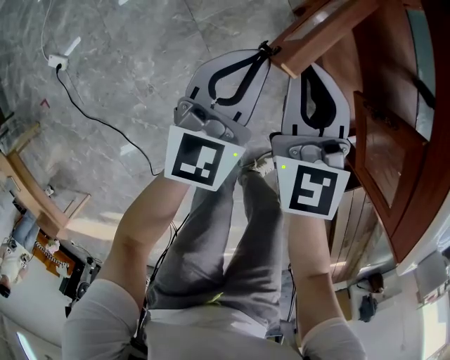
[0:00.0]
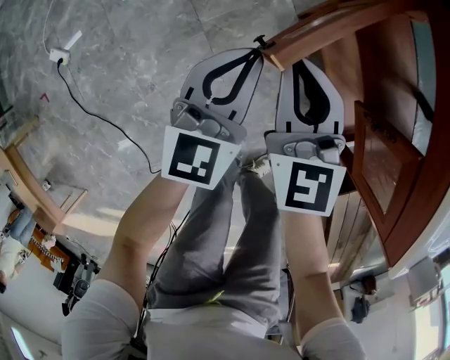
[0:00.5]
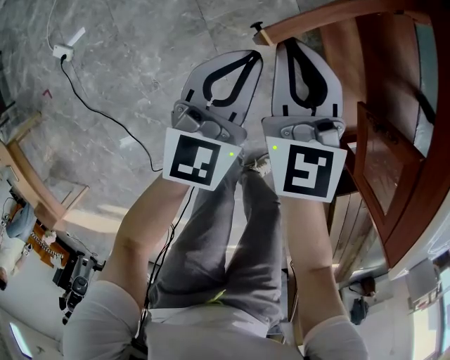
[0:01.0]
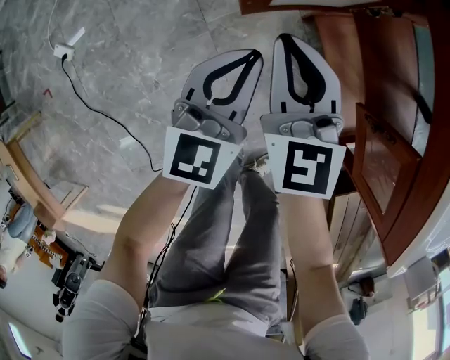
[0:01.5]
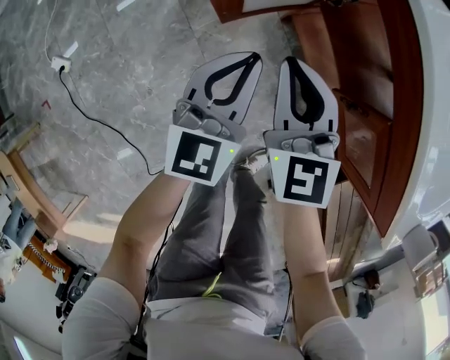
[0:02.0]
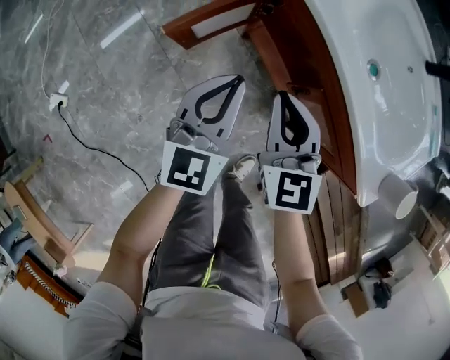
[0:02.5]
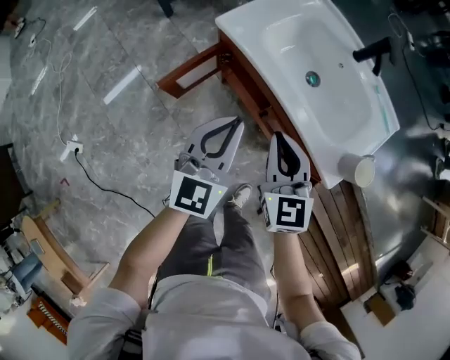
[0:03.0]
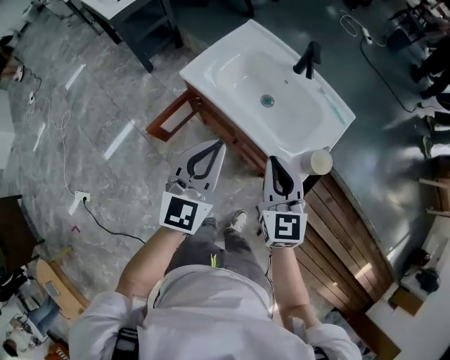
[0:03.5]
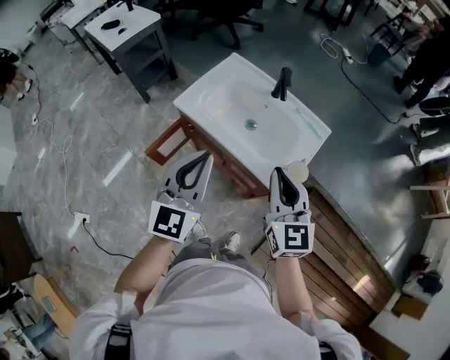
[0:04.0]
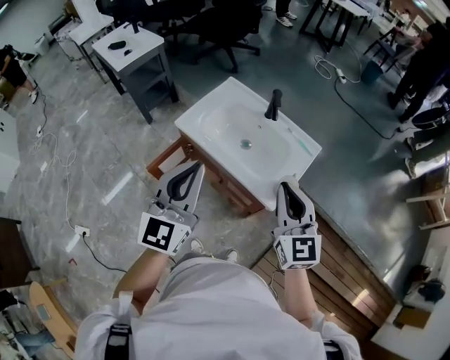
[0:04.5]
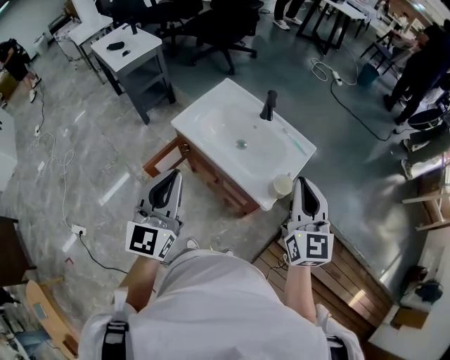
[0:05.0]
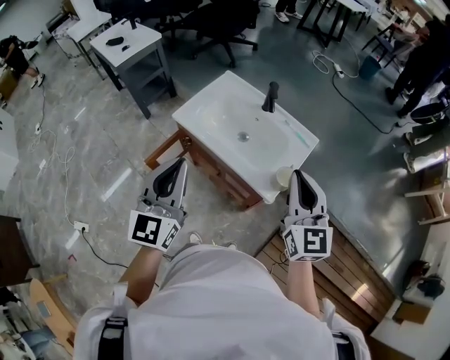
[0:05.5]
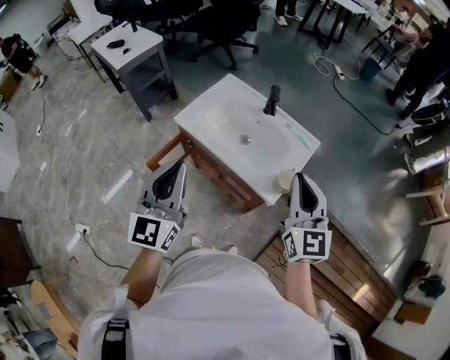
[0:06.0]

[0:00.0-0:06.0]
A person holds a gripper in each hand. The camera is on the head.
0:00.0 to 0:02.0: Both grippers move upward, approximately 5 cm.
0:02.0 to 0:04.0: Both grippers travel together upward and to the right, about 60 cm. The right gripper changes its angle by some 30 degrees, while the left gripper changes its angle by about 30 degrees.
0:04.0 to 0:06.0: The right gripper is displaced upward and to the right by roughly 10 cm, while the left gripper goes roughly 10 cm upward and backward.

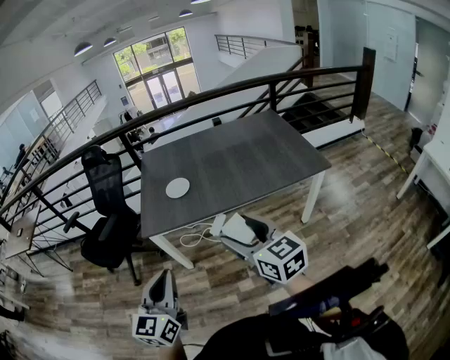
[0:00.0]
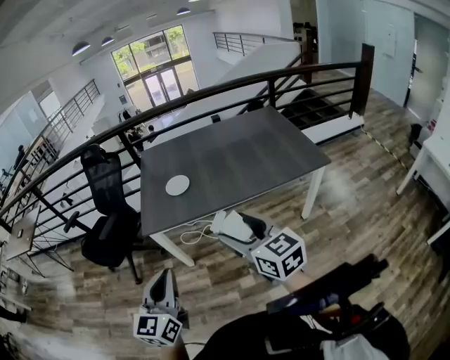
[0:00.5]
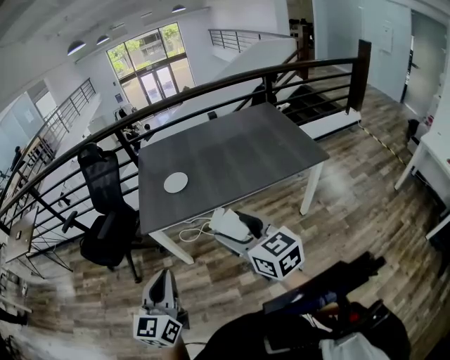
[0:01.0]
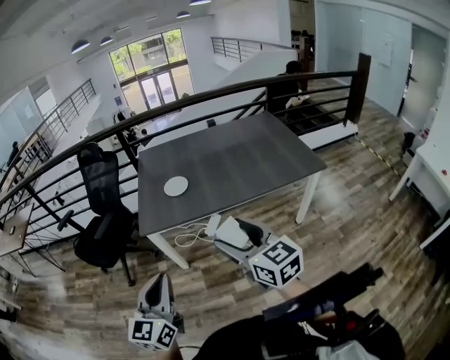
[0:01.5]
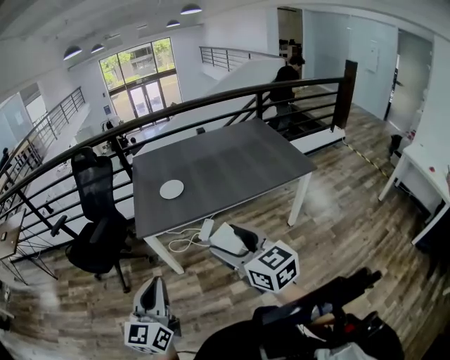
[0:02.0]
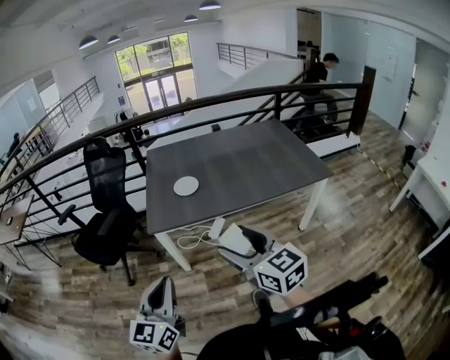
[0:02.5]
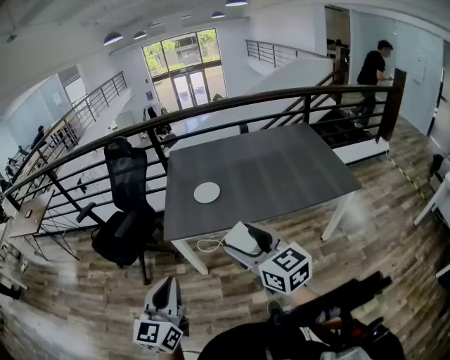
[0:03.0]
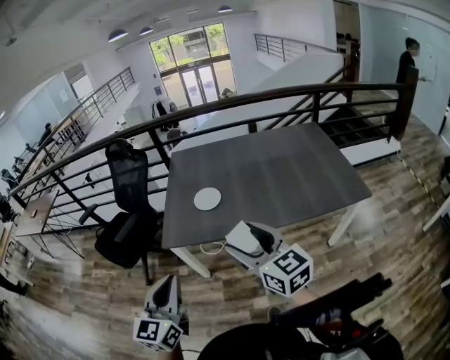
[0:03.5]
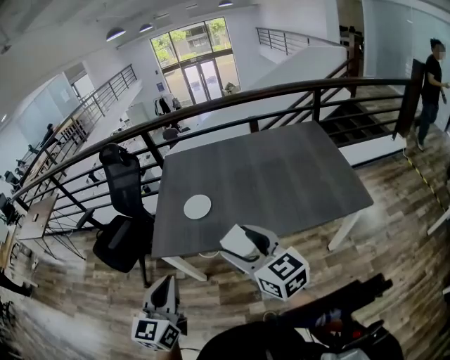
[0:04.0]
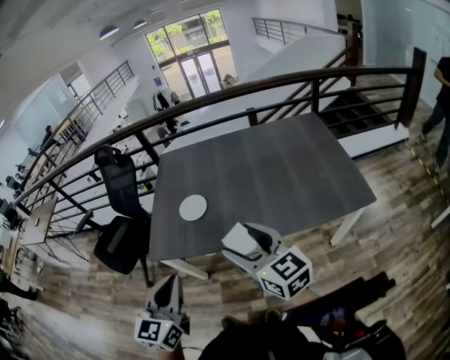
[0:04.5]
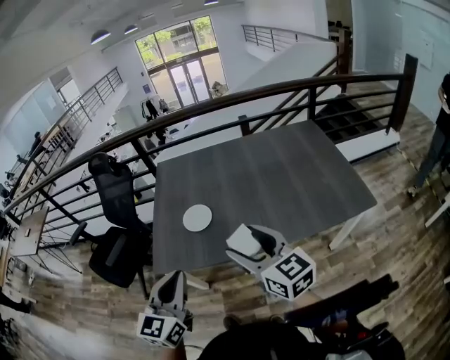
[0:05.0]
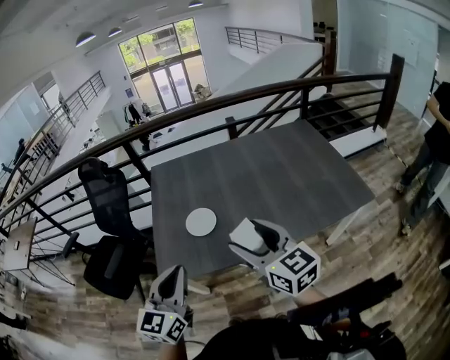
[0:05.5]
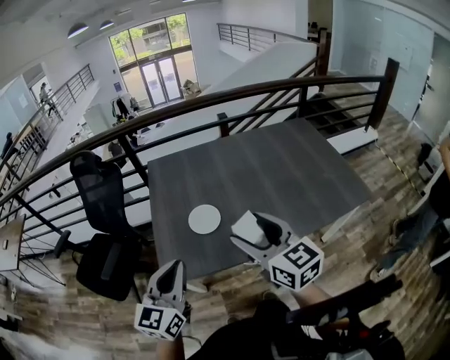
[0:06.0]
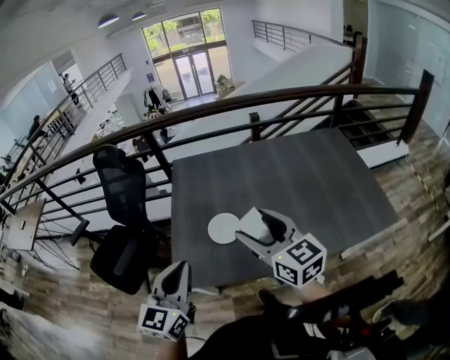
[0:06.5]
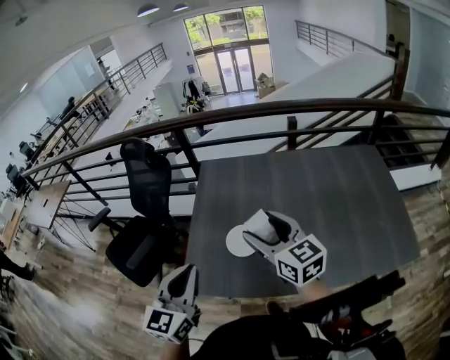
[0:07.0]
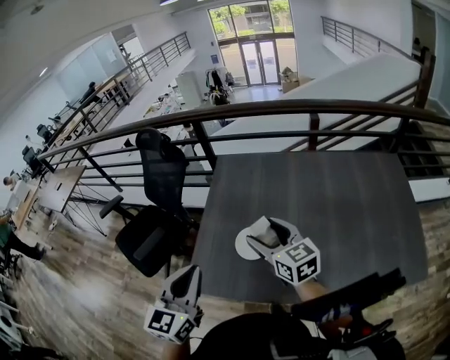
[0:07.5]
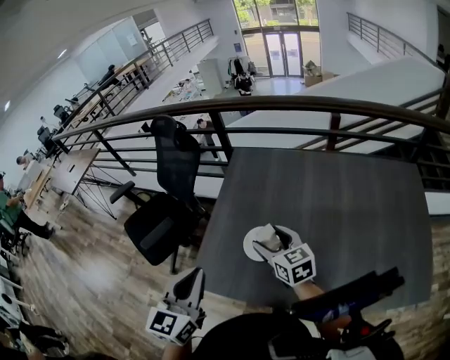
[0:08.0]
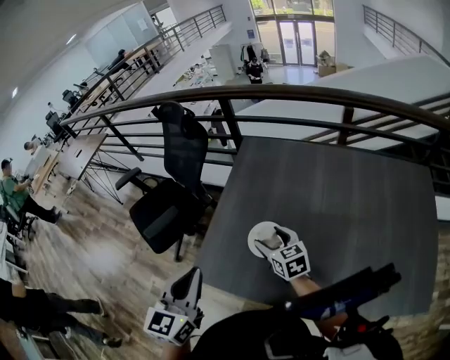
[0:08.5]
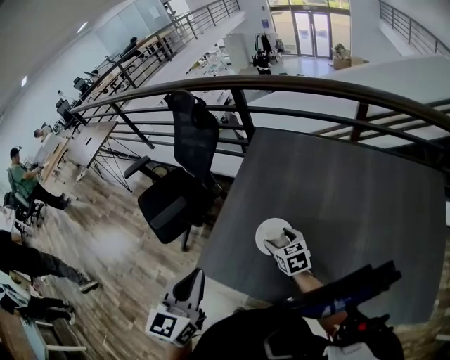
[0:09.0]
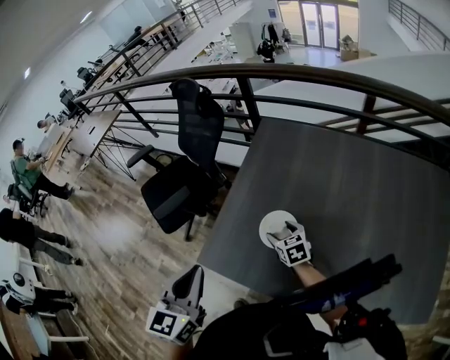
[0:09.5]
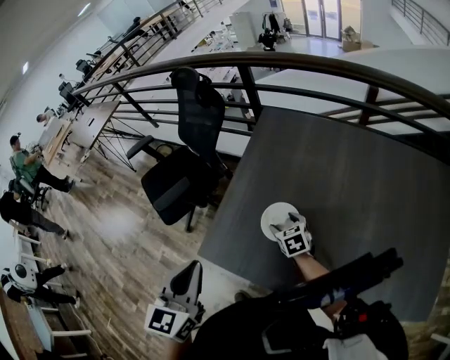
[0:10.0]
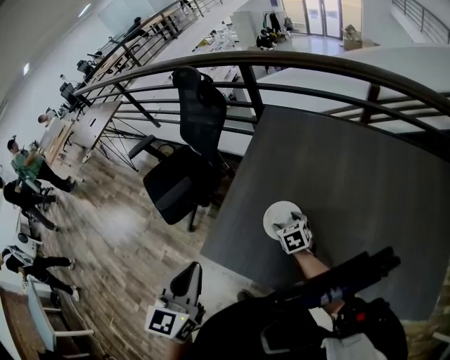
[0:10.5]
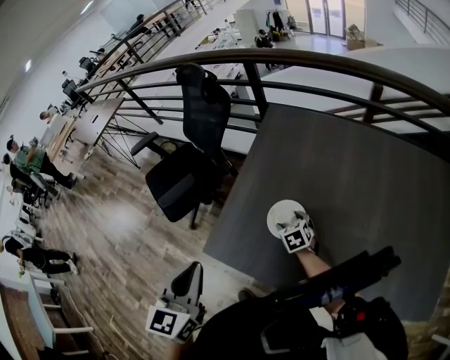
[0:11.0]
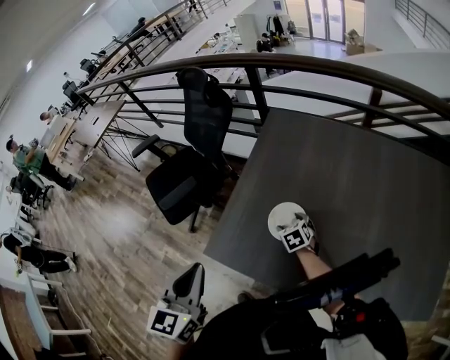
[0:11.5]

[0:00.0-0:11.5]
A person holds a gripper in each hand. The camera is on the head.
0:00.0 to 0:02.0: The right gripper is displaced to the left and backward by about 10 cm. Meanwhile the left gripper is displaced to the left by some 10 cm.
0:02.0 to 0:04.0: The grippers both shift forward and to the right by about 30 cm.
0:04.0 to 0:06.0: Both grippers move forward and to the left, some 25 cm.
0:06.0 to 0:07.5: The left gripper heads forward, covering approximately 10 cm, and swivels roughly 20 degrees; the right gripper shifts some 20 cm forward, and rotates roughly 20 degrees.
0:07.5 to 0:09.5: The right gripper travels downward by approximately 25 cm, and changes its angle by some 30 degrees.
0:09.5 to 0:11.5: The right gripper is displaced downward by roughly 10 cm.

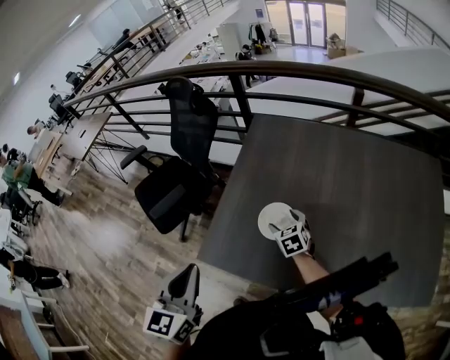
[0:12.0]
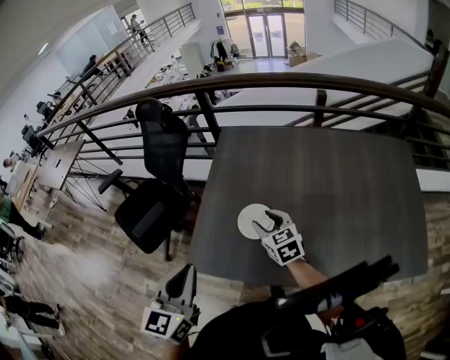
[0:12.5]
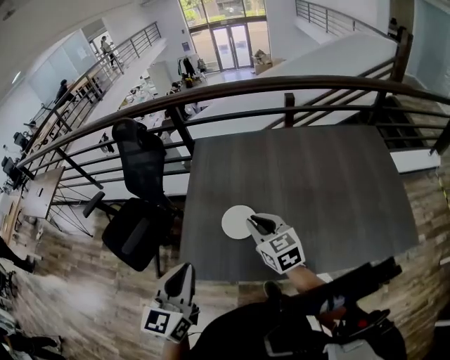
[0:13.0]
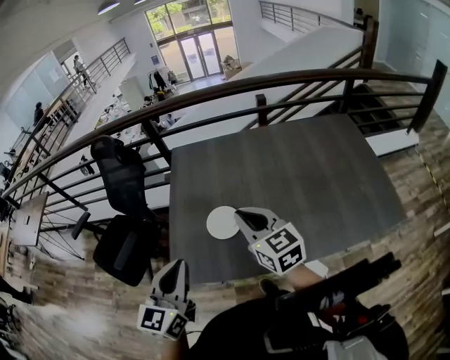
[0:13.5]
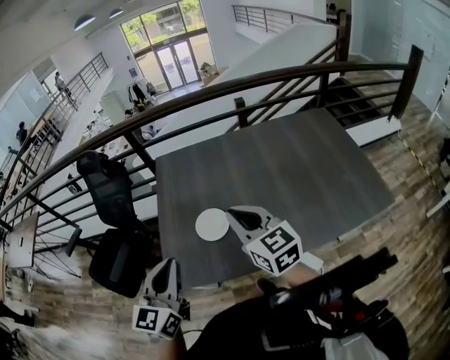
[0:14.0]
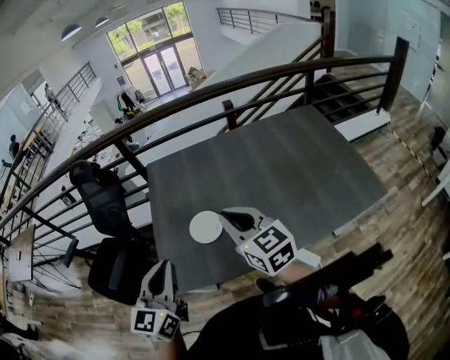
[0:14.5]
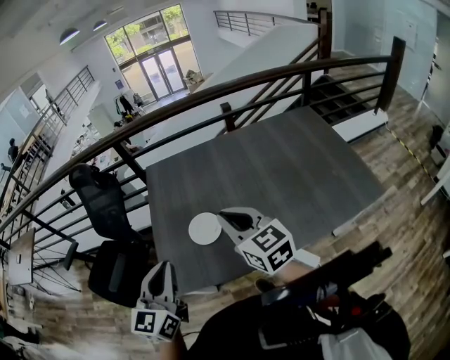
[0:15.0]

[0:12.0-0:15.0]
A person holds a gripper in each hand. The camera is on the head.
0:12.0 to 0:13.5: The left gripper rotates approximately 30 degrees; the right gripper travels upward and backward by some 30 cm, tilts its fingers roughly 30 degrees upward, and closes up.
0:13.5 to 0:15.0: The grippers stay close to where they were, moving slightly.

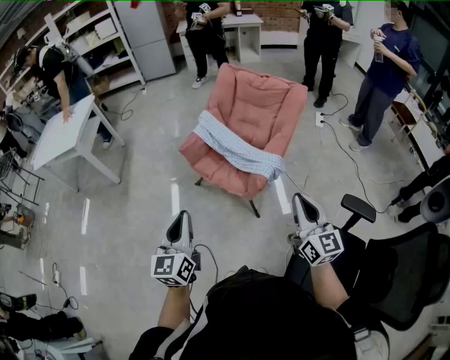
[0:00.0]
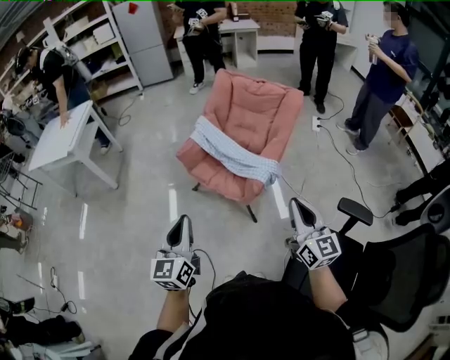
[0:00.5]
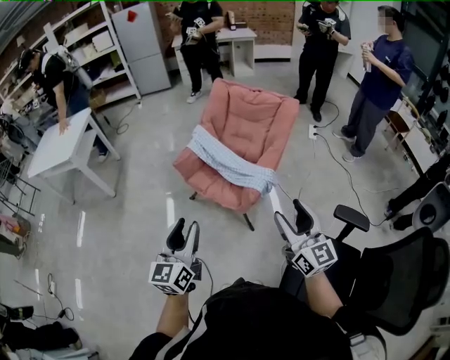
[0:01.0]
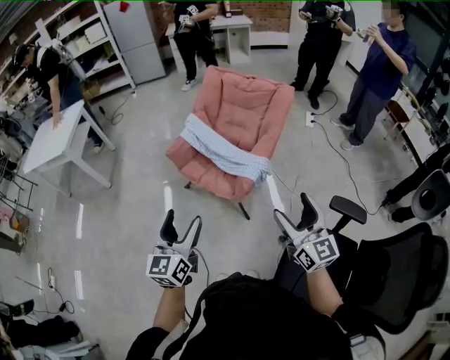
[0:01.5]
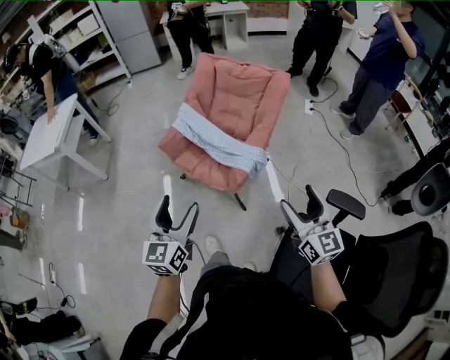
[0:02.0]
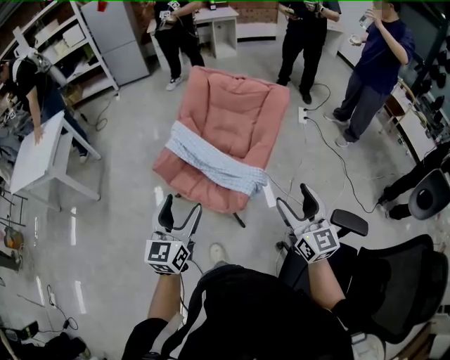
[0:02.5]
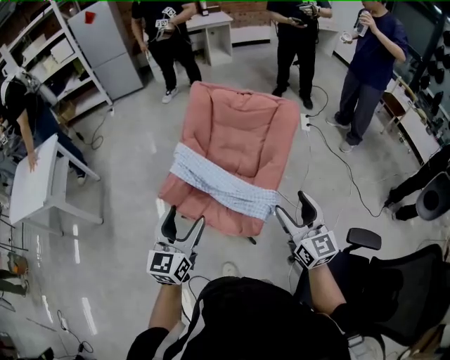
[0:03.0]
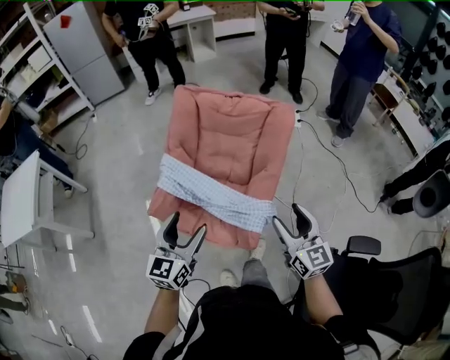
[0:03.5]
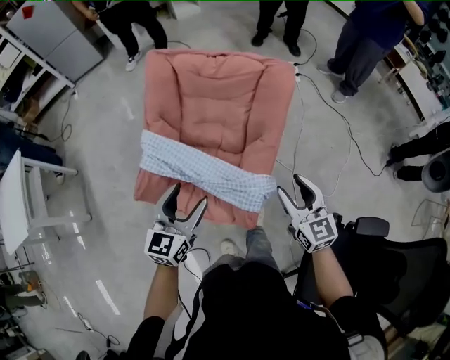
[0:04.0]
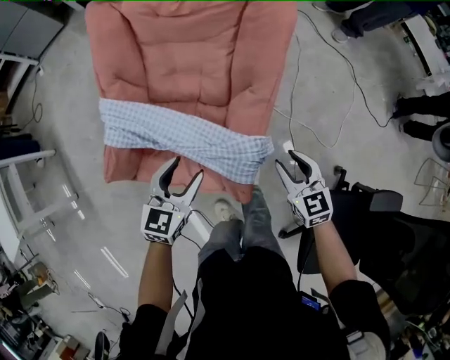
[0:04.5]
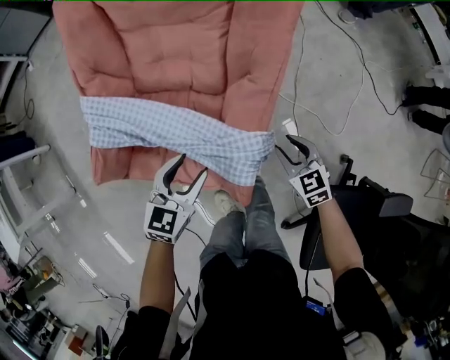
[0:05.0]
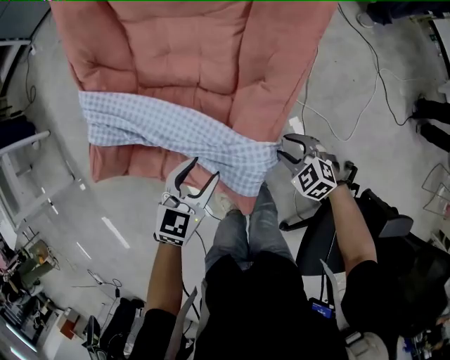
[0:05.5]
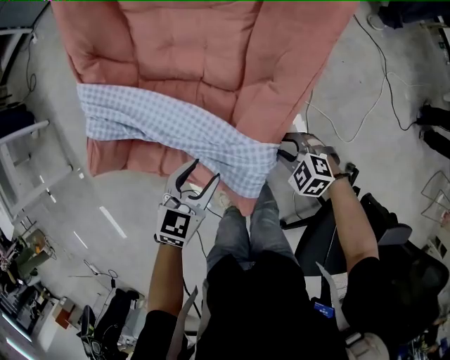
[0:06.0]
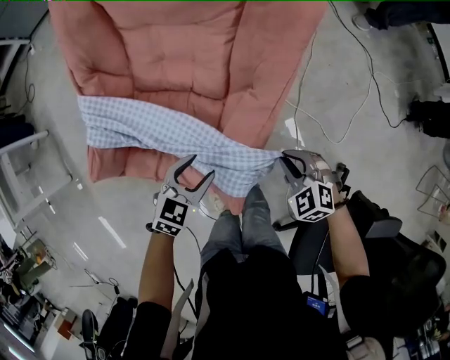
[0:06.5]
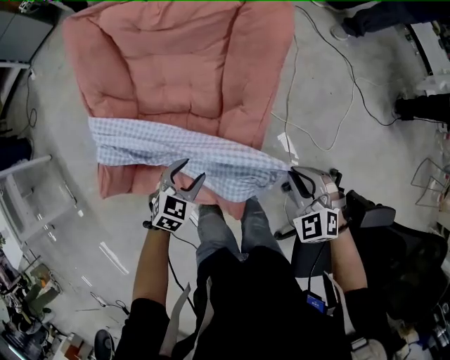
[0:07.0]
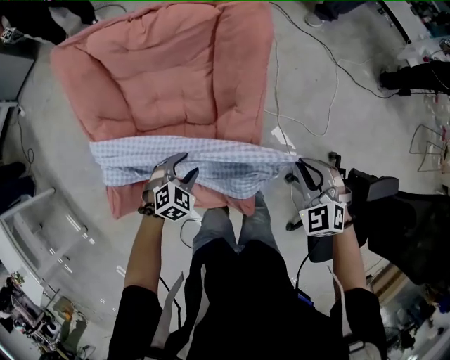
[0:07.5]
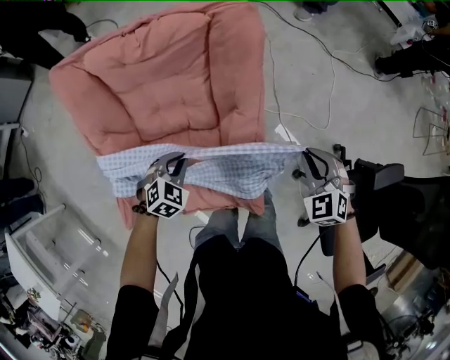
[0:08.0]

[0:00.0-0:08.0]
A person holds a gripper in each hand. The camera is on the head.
0:00.0 to 0:02.0: Both grippers move to the right, about 10 cm. The left gripper opens up. Meanwhile the right gripper opens up.
0:02.0 to 0:04.0: The grippers both shift forward by roughly 40 cm. The left gripper rotates some 30 degrees. The right gripper closes.
0:04.0 to 0:06.0: Both grippers travel together downward, some 35 cm. The left gripper swivels roughly 30 degrees, while the right gripper tilts its fingers approximately 40 degrees downward.
0:06.0 to 0:08.0: The left gripper changes place by some 15 cm, rolls clockwise, seen from behind, by approximately 40 degrees, and closes up, while the right gripper is displaced upward by some 25 cm, and swivels roughly 50 degrees.
